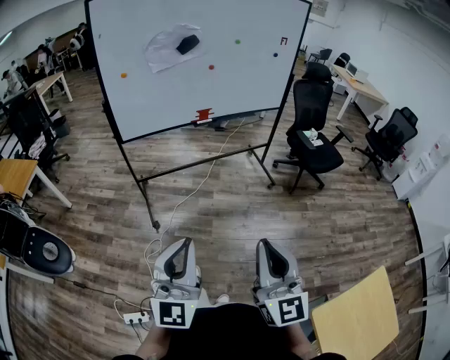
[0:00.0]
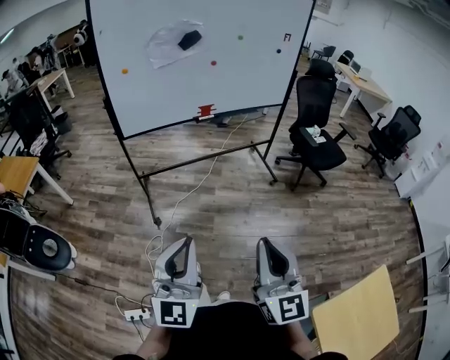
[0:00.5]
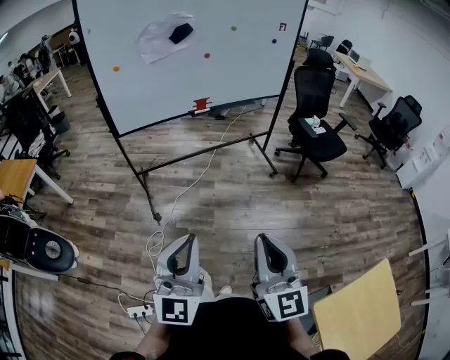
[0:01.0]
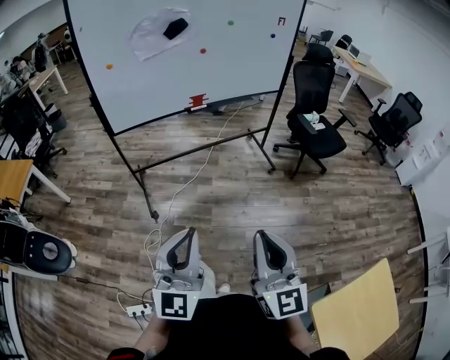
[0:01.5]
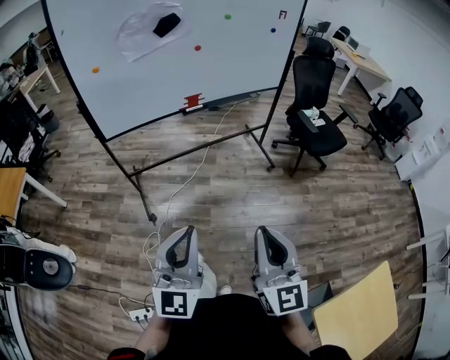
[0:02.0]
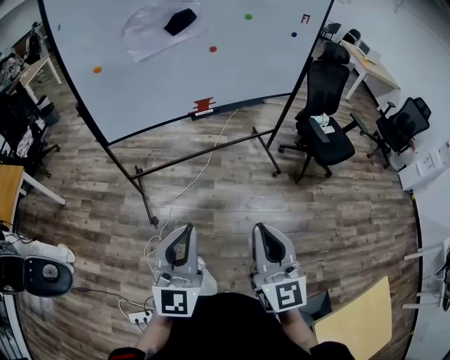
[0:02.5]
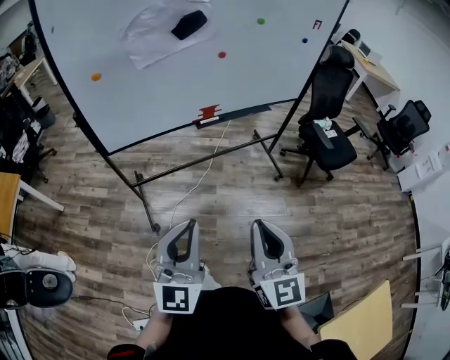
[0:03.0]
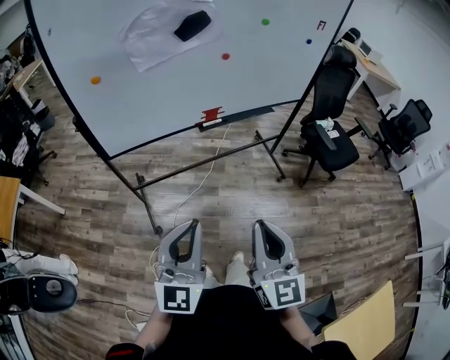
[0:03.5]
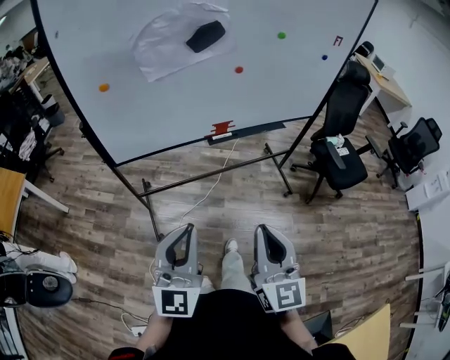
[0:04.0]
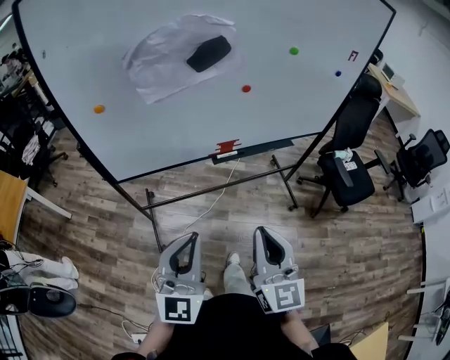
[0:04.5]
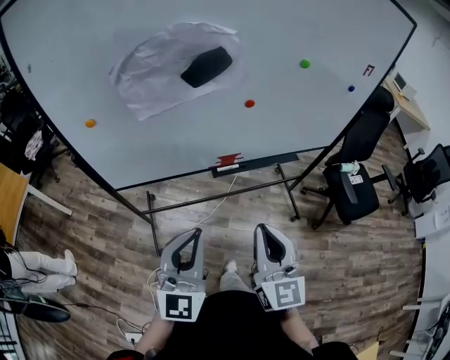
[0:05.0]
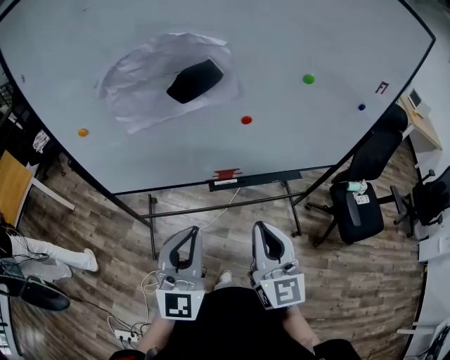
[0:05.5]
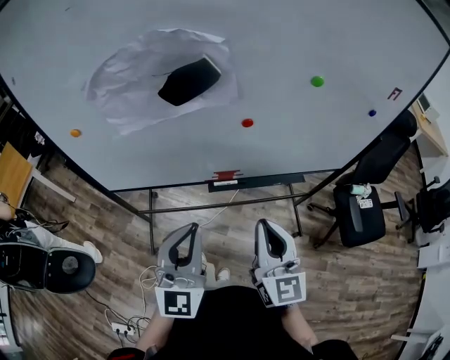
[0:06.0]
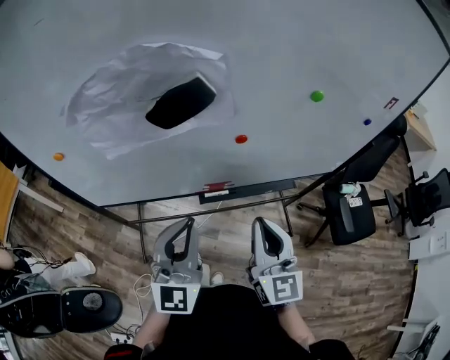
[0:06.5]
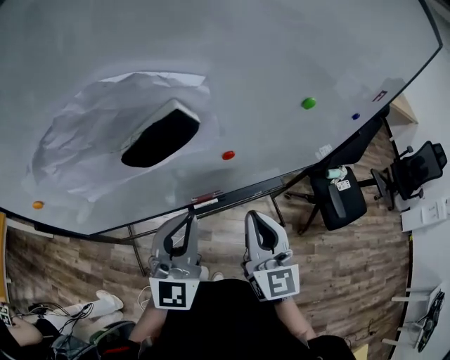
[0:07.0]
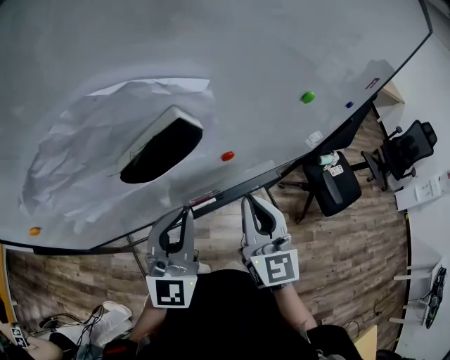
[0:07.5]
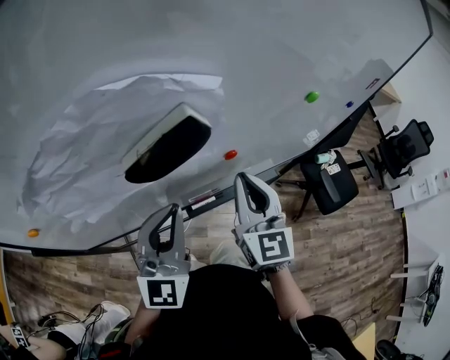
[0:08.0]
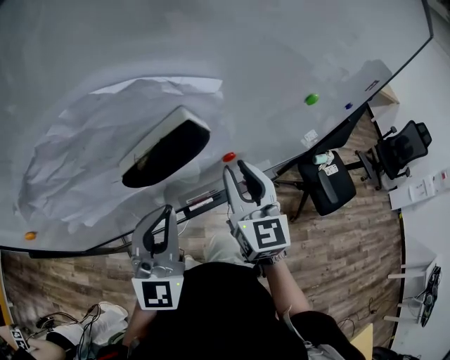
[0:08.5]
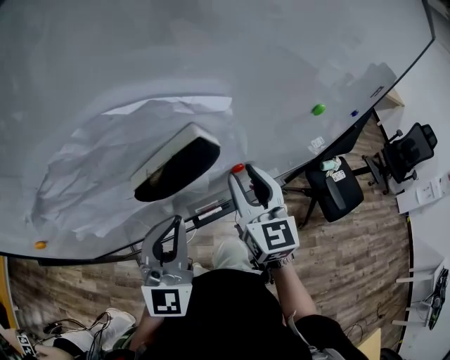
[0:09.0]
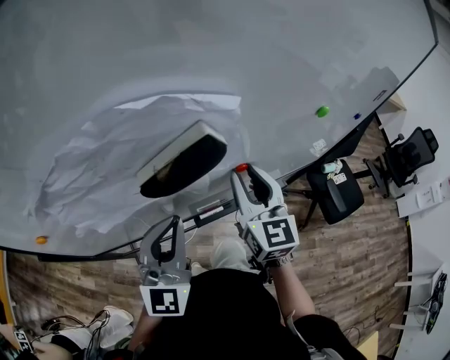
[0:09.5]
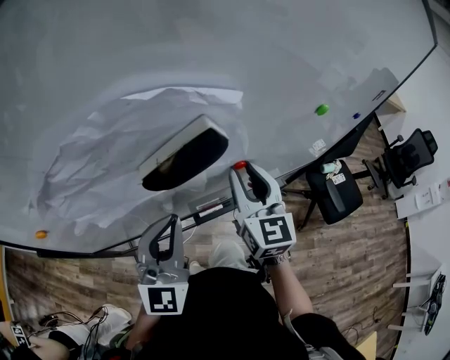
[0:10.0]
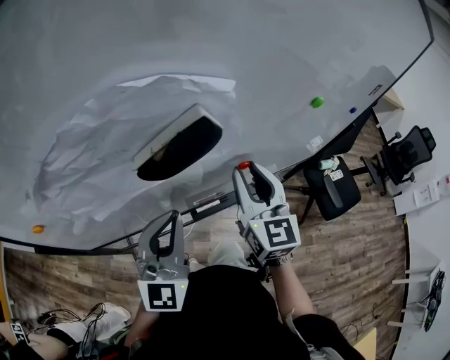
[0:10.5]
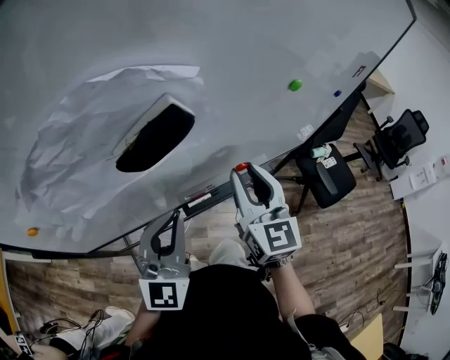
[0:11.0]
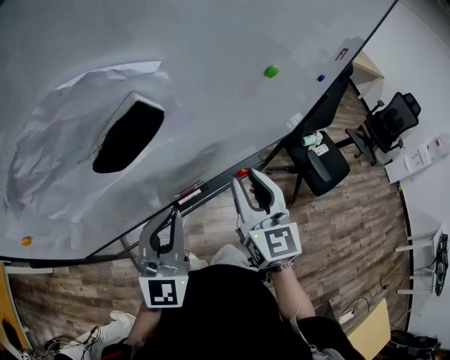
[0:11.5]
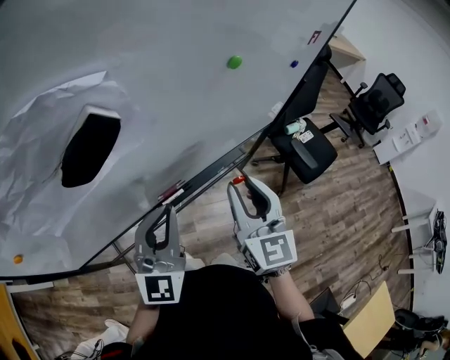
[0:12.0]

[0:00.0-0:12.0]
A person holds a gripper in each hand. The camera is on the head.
0:00.0 to 0:02.0: The two grippers go about 15 cm forward.
0:02.0 to 0:04.0: The two grippers go about 25 cm forward and to the left.
0:04.0 to 0:06.0: Both grippers move forward, some 25 cm.
0:06.0 to 0:08.0: The grippers both shift forward by roughly 20 cm.
0:08.0 to 0:10.0: The right gripper opens its fingers.
0:10.0 to 0:12.0: The right gripper goes roughly 15 cm to the right and backward. The left gripper heads to the right, covering roughly 10 cm.

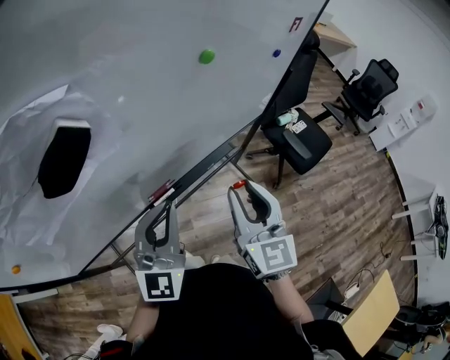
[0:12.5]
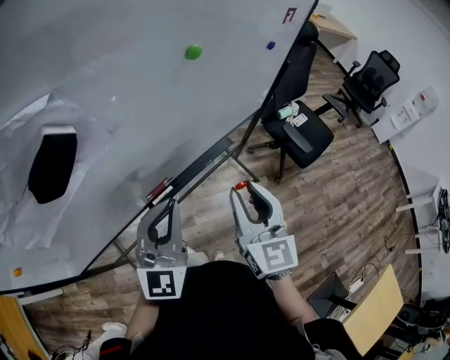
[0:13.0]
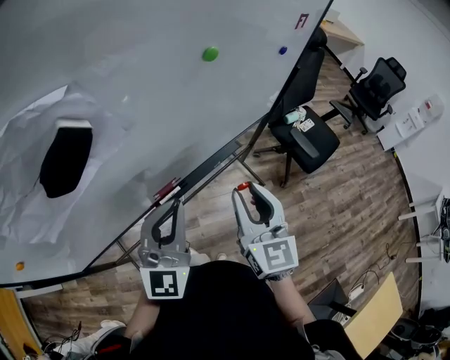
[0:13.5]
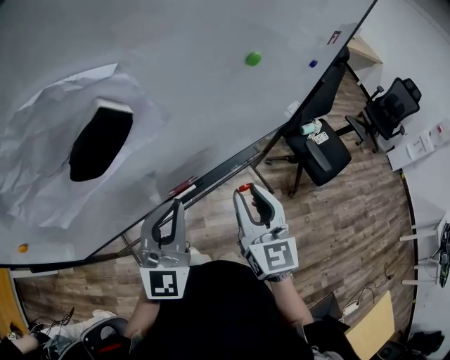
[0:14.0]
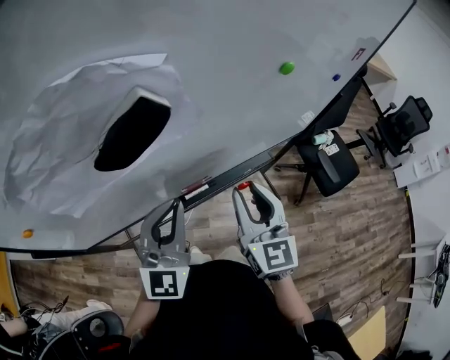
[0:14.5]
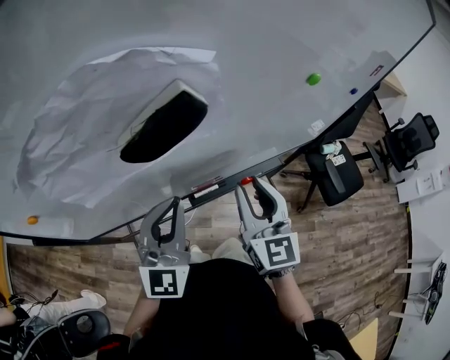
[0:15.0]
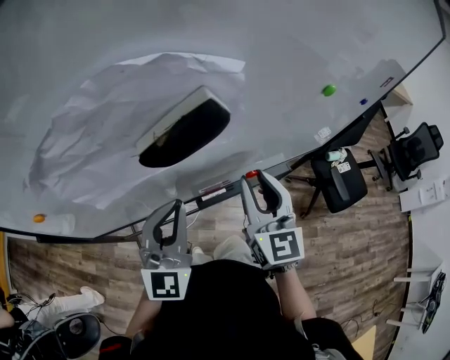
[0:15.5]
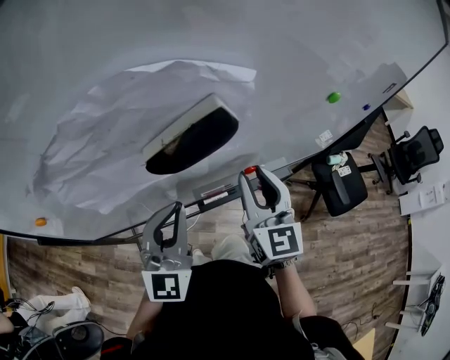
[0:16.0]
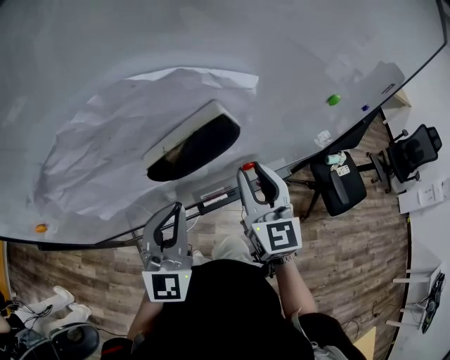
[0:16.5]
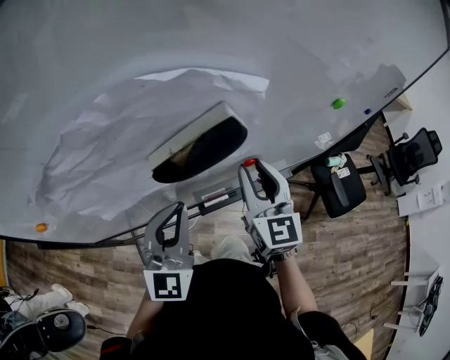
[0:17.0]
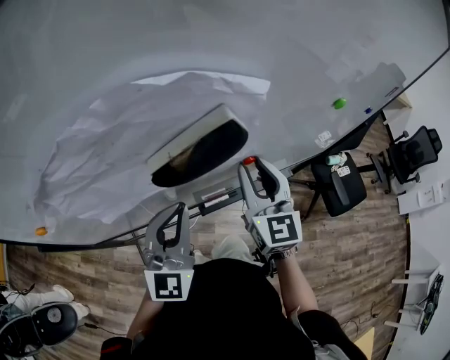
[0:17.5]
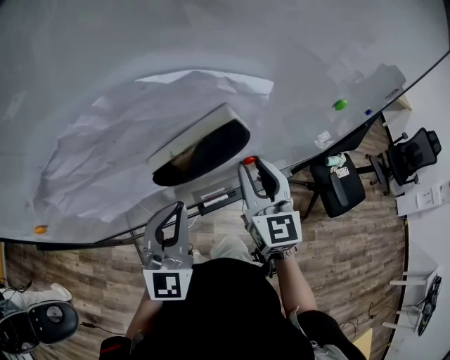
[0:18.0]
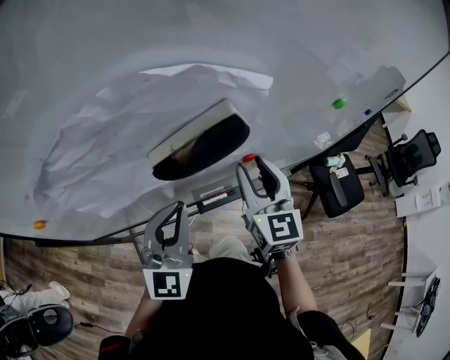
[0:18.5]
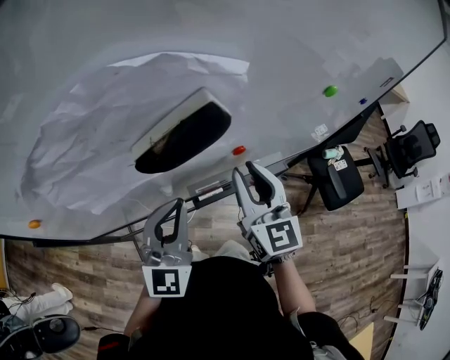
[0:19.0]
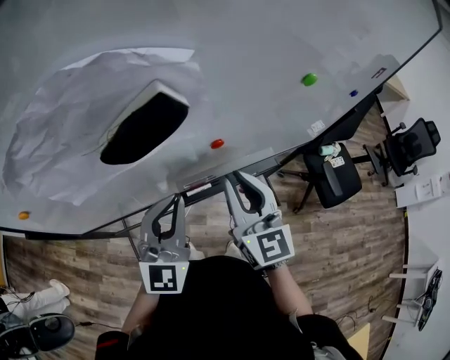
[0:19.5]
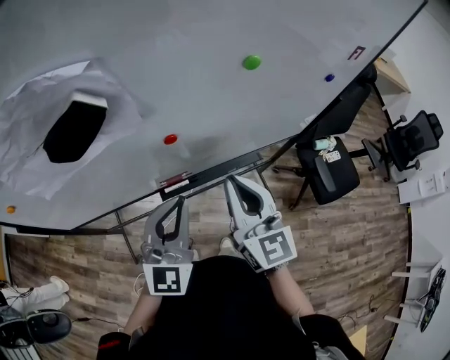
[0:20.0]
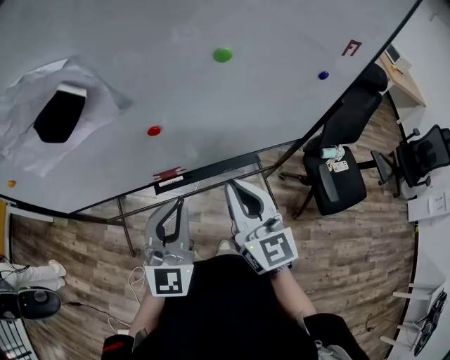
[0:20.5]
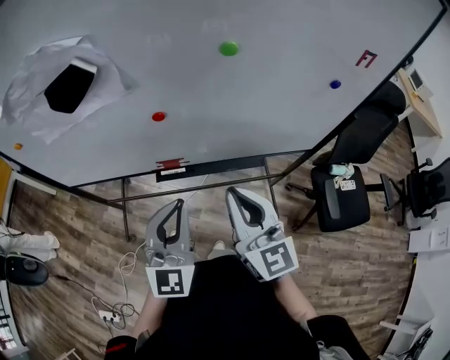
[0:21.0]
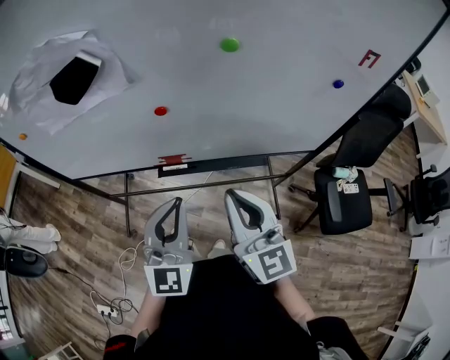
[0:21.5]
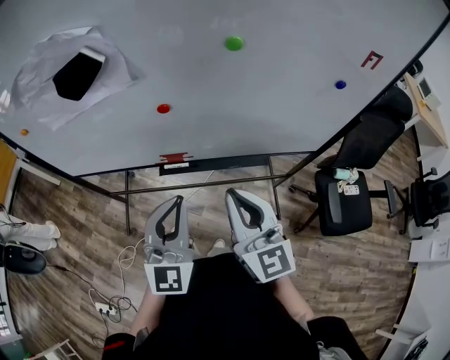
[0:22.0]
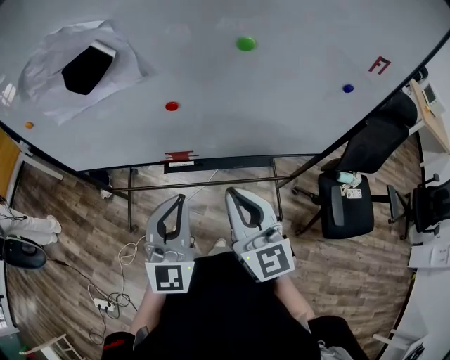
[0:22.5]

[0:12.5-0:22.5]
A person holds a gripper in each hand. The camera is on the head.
0:12.5 to 0:14.5: Both grippers move to the left, some 10 cm.
0:14.5 to 0:16.5: The left gripper goes about 5 cm to the left. Meanwhile the right gripper shifts approximately 10 cm forward and to the left.
0:16.5 to 0:18.5: The grippers make only small movements.
0:18.5 to 0:20.5: The right gripper travels to the right and backward by approximately 20 cm, and closes up; the left gripper heads to the right, covering some 20 cm.
0:20.5 to 0:22.5: There are only small adjustments of the grippers.

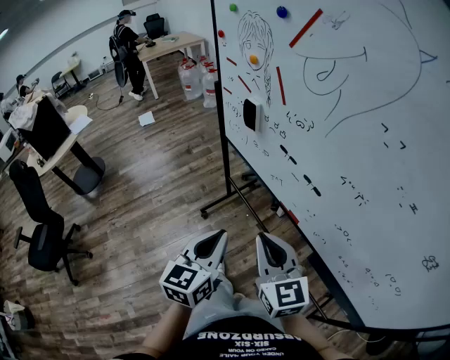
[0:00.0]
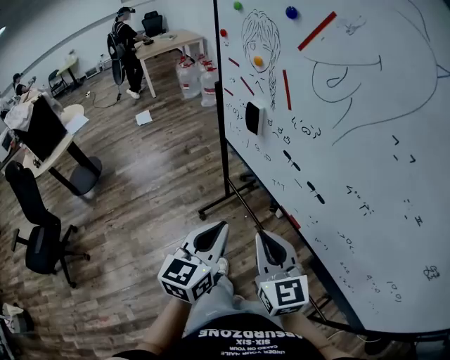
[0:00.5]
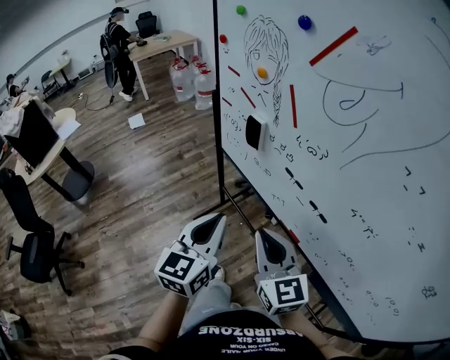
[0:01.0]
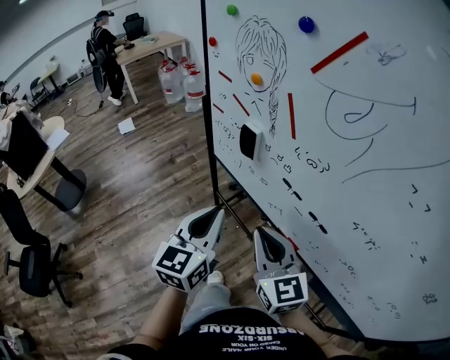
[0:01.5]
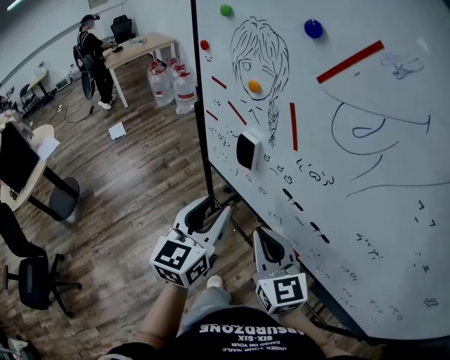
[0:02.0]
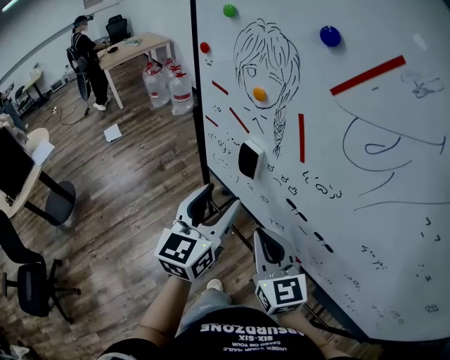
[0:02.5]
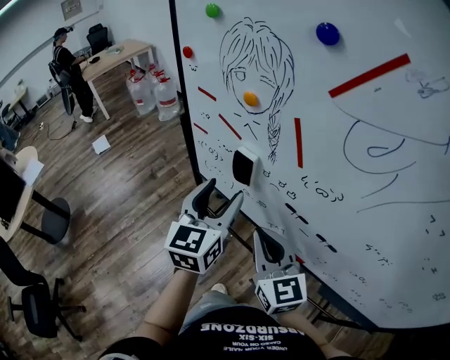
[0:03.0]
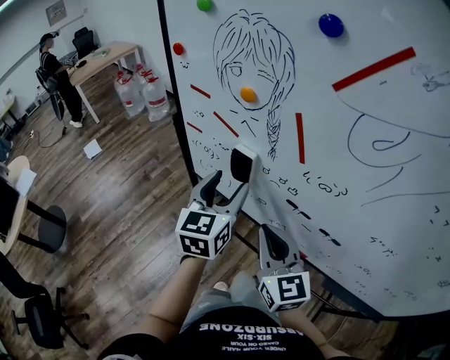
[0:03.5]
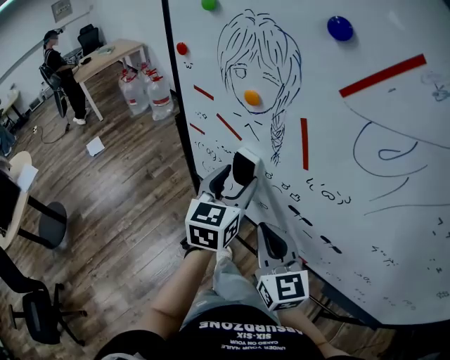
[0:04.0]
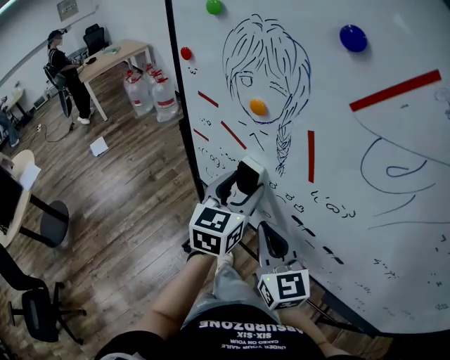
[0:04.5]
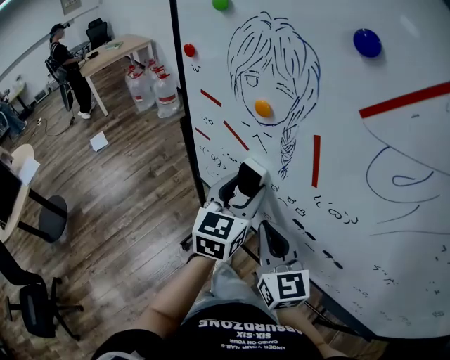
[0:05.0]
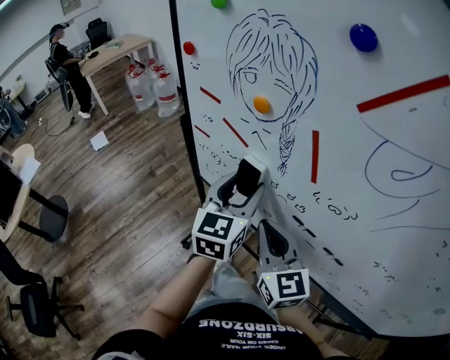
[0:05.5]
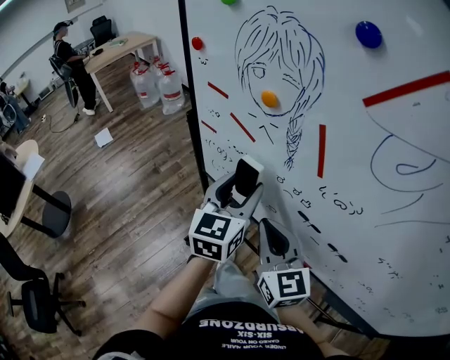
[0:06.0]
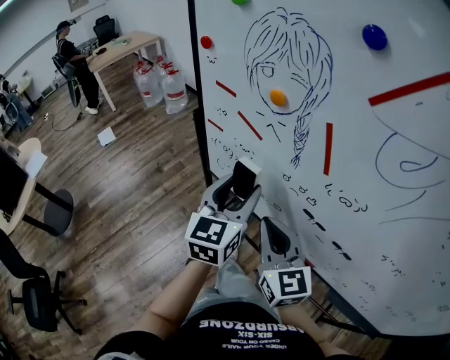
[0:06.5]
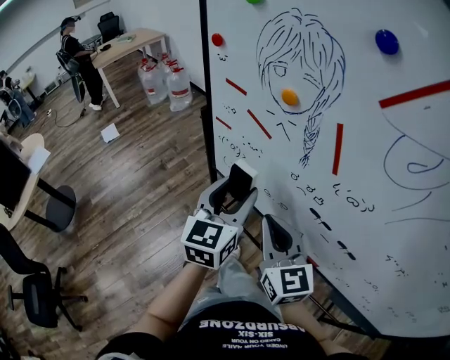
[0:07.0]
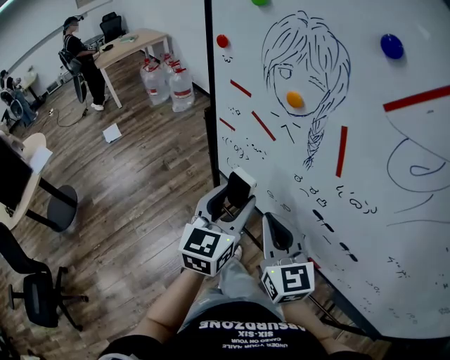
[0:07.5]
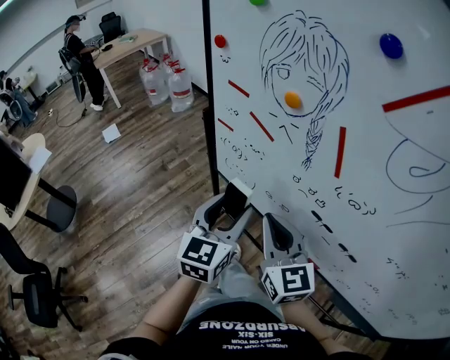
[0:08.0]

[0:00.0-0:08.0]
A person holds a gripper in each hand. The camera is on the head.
0:00.0 to 0:02.0: The two grippers go some 20 cm forward. The left gripper opens up.
0:02.0 to 0:04.0: The left gripper heads forward, covering roughly 15 cm, and opens its fingers. The right gripper heads forward, covering approximately 10 cm.
0:04.0 to 0:06.0: The grippers make only small movements.
0:06.0 to 0:08.0: The left gripper goes approximately 10 cm backward and to the left.
